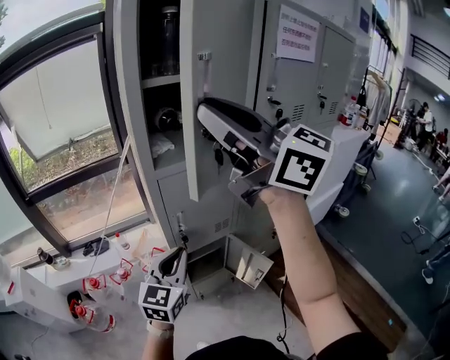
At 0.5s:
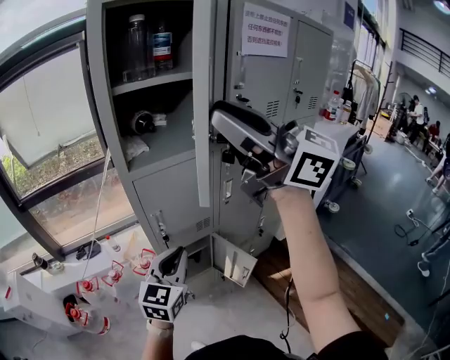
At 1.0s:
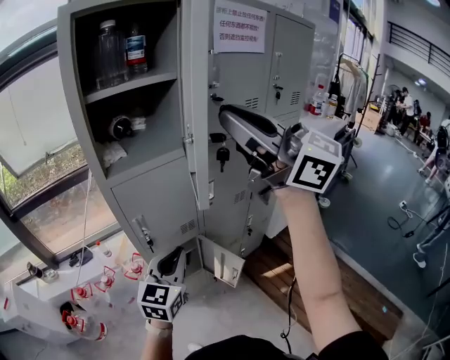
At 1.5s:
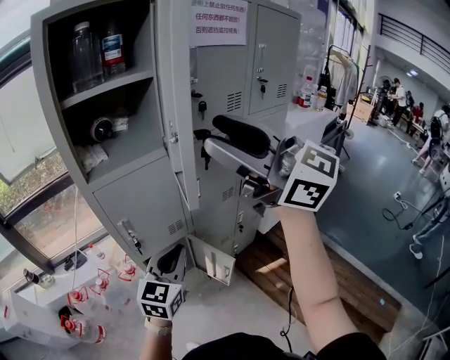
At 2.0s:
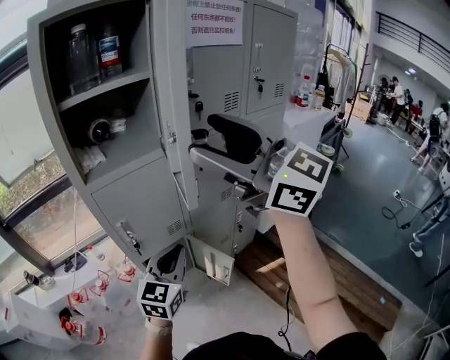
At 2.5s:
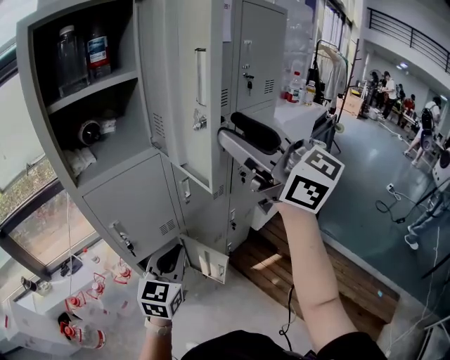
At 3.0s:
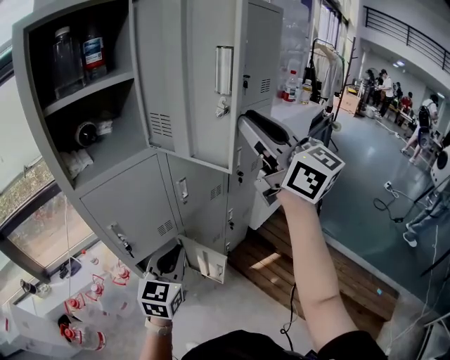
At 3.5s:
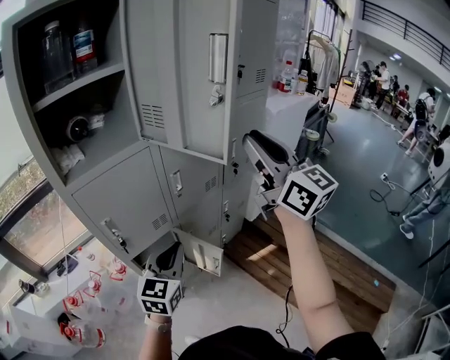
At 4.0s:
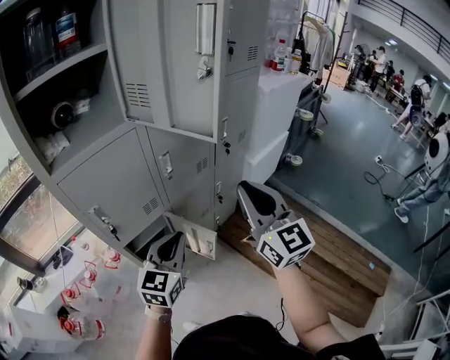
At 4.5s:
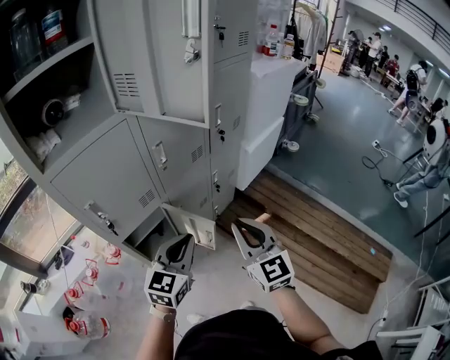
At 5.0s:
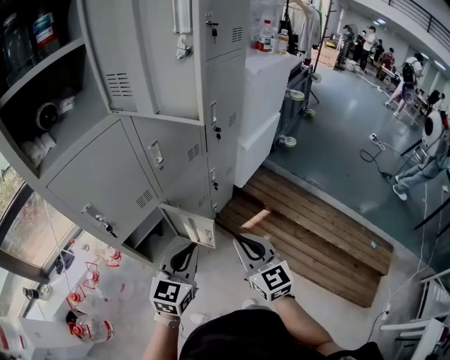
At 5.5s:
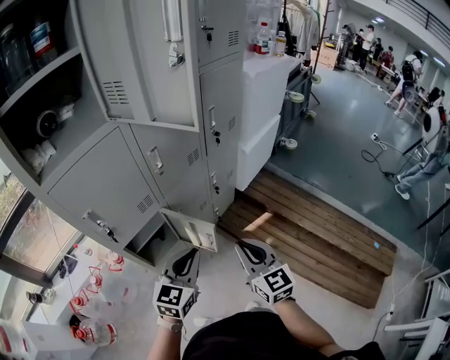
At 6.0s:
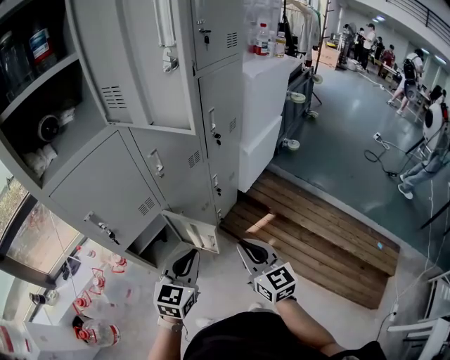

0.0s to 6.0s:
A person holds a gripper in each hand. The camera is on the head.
0.0s to 2.0s: The left gripper shifts some 15 cm to the right; the right gripper goes approximately 20 cm to the right and backward, and opens.
2.0s to 4.0s: The left gripper shifts by roughly 10 cm. The right gripper heads downward, covering approximately 25 cm, changes its angle by roughly 40 degrees, and closes its fingers.
4.0s to 6.0s: The left gripper heads downward, covering some 5 cm, while the right gripper moves downward and backward, approximately 20 cm, and turns by about 20 degrees.

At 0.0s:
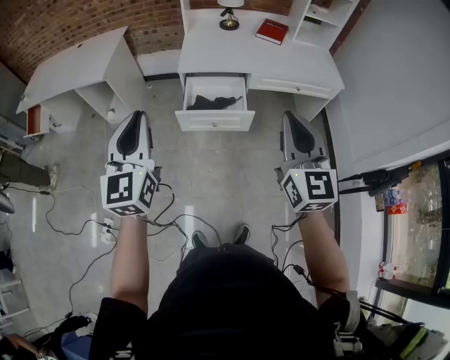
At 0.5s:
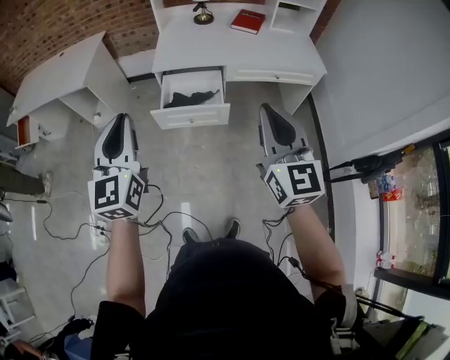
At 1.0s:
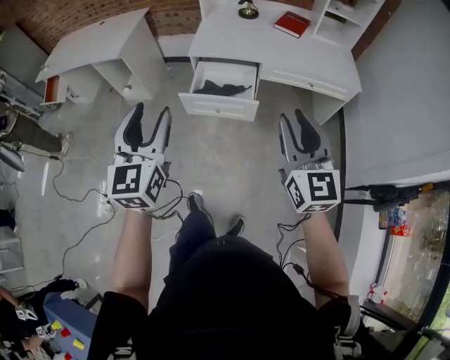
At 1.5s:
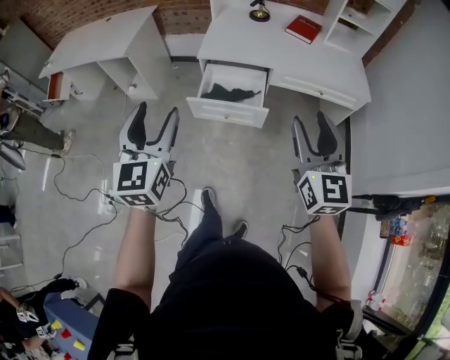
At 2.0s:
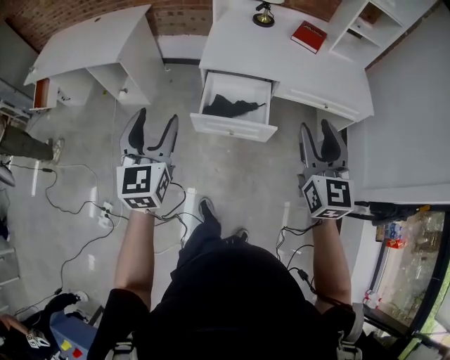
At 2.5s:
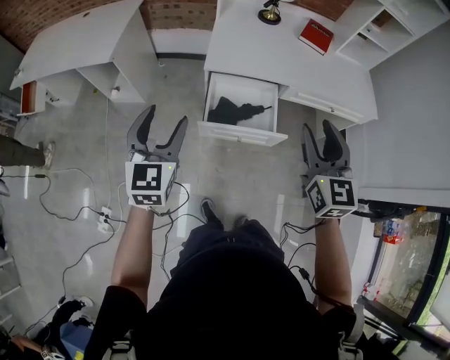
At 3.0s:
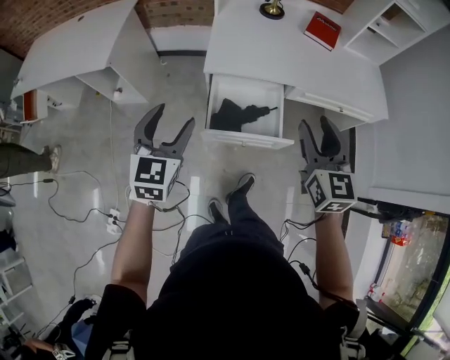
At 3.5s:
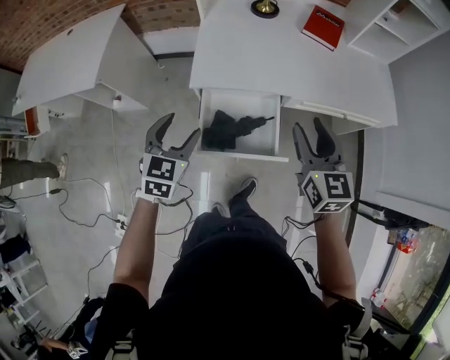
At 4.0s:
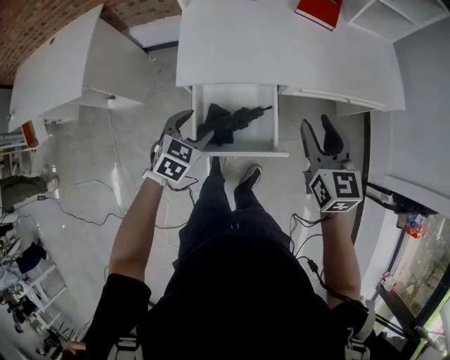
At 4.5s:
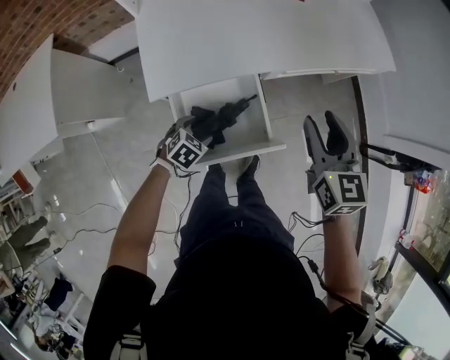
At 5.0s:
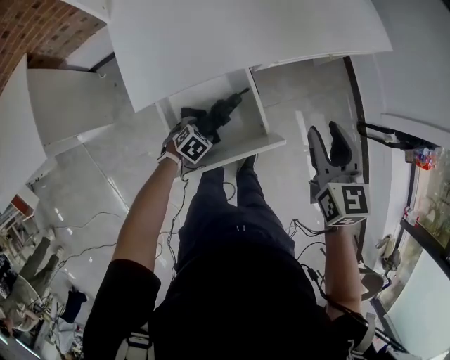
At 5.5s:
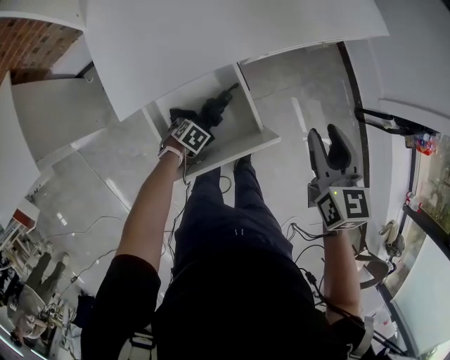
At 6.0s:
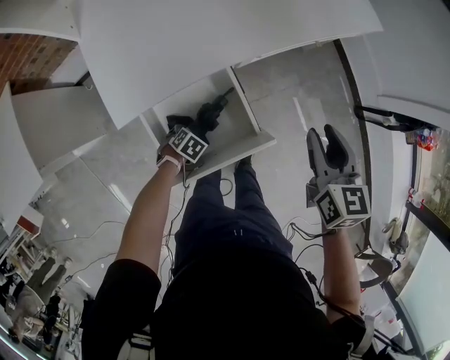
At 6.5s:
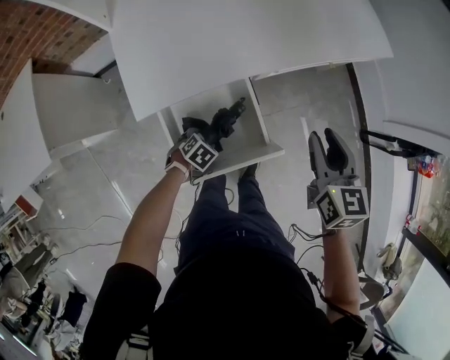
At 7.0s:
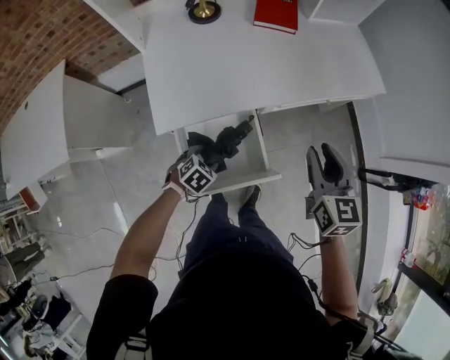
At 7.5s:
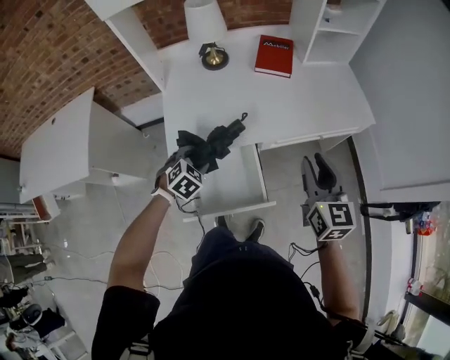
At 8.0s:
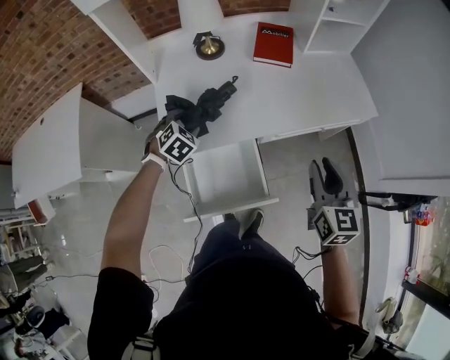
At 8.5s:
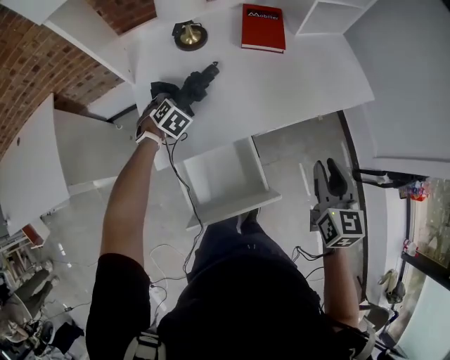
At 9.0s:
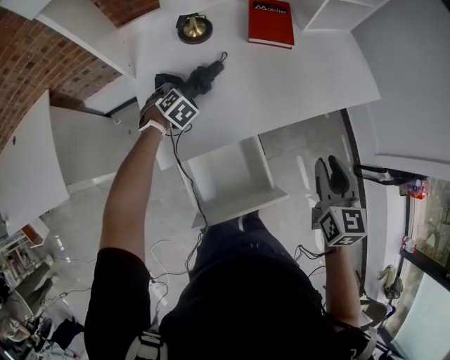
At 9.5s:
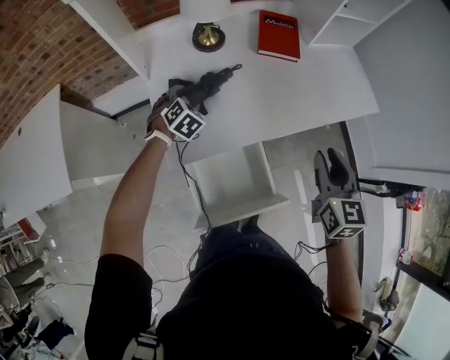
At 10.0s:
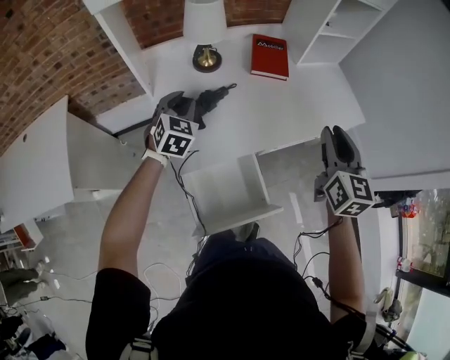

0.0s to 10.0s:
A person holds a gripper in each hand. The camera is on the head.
0.0s to 2.0s: The left gripper heads forward and downward, covering about 15 cm, and opens up; the right gripper heads forward, covering roughly 15 cm, and opens its fingers.
2.0s to 4.0s: Both grippers travel together forward and downward, roughly 35 cm. The left gripper tips its fingers downward by approximately 40 degrees. The right gripper swivels roughly 20 degrees.
4.0s to 6.0s: The left gripper heads downward, covering roughly 30 cm, and angles its fingers downward, by approximately 30 degrees. Meanwhile the right gripper shifts by roughly 10 cm, and changes its angle by approximately 30 degrees.
6.0s to 8.0s: The left gripper goes roughly 30 cm upward, and swivels about 40 degrees, while the right gripper travels upward by about 10 cm.
8.0s to 10.0s: The grippers both shift forward and upward by about 15 cm. The left gripper changes its angle by about 30 degrees, and closes up.

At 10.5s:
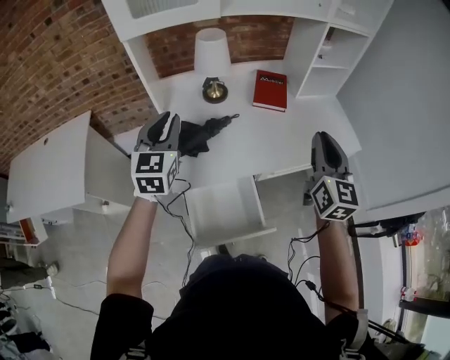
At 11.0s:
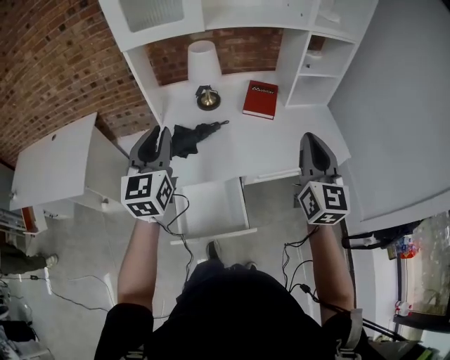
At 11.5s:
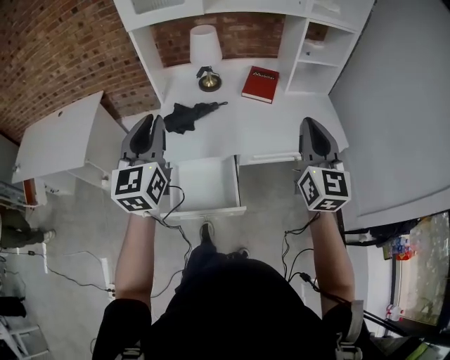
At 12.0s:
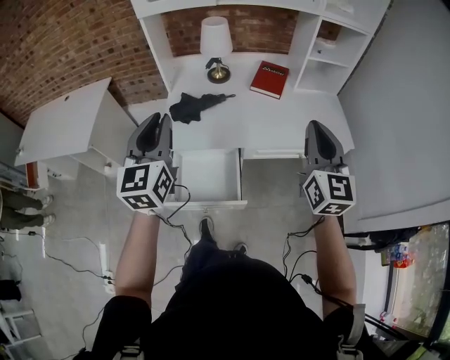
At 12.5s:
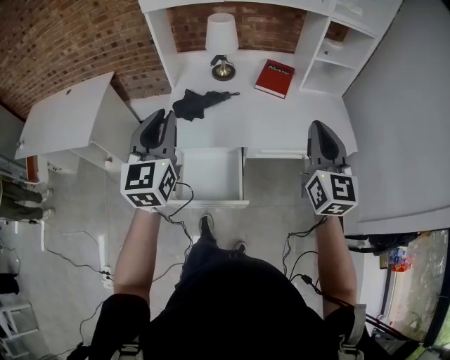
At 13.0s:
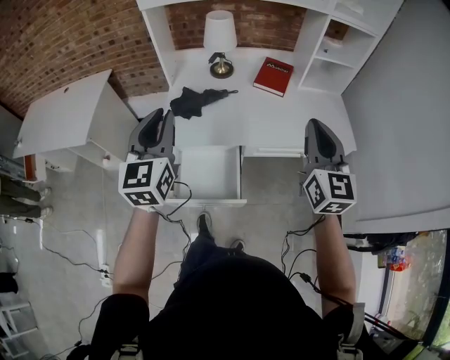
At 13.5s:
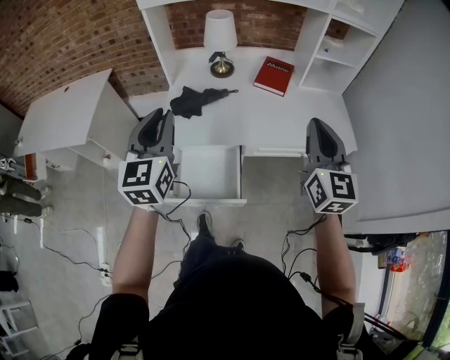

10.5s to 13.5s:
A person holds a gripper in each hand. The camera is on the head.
10.5s to 12.0s: The left gripper is displaced backward and to the right by roughly 25 cm. Meanwhile the right gripper moves backward and to the right, roughly 10 cm.
12.0s to 13.5s: The grippers stay close to where they were, moving slightly.

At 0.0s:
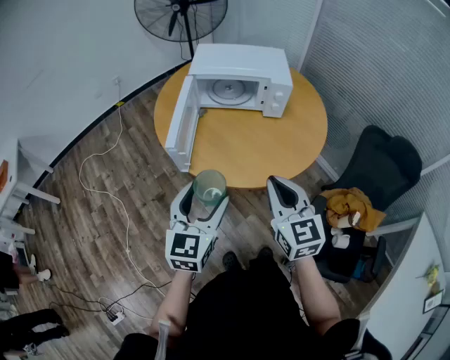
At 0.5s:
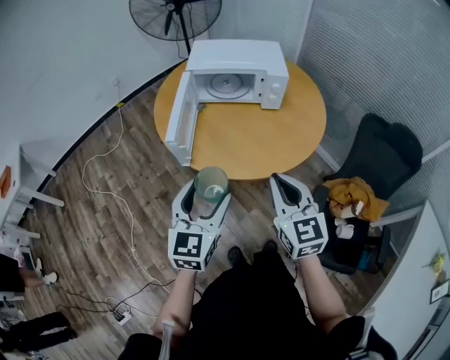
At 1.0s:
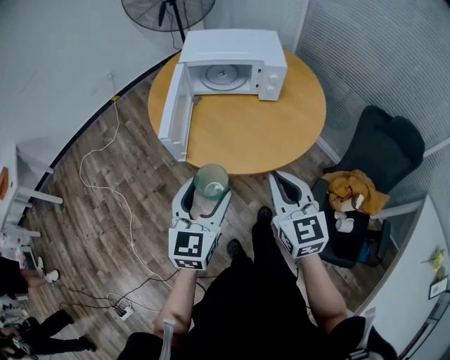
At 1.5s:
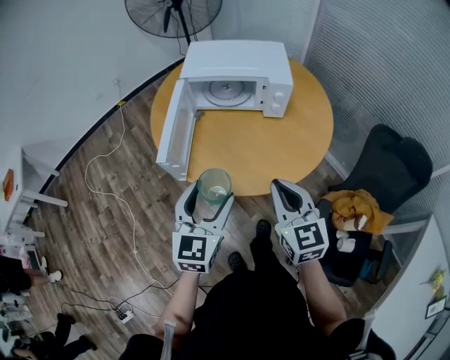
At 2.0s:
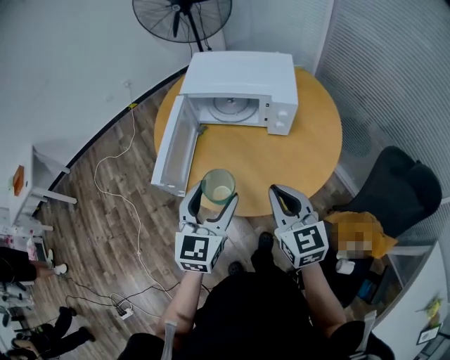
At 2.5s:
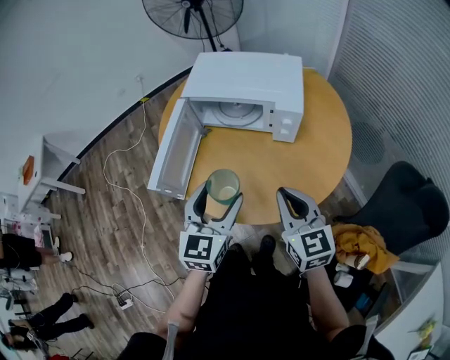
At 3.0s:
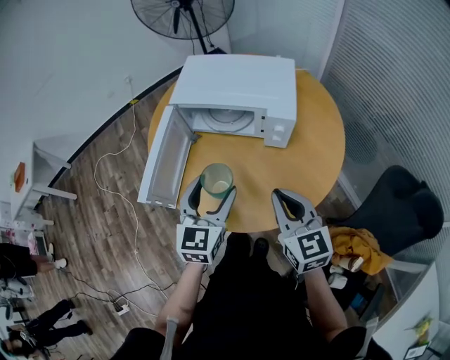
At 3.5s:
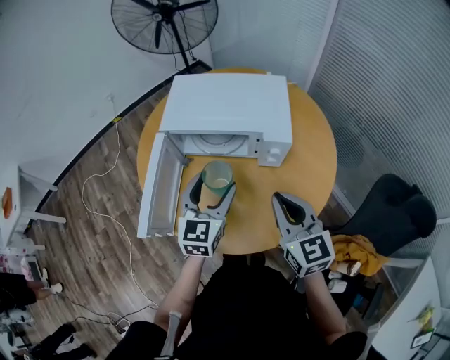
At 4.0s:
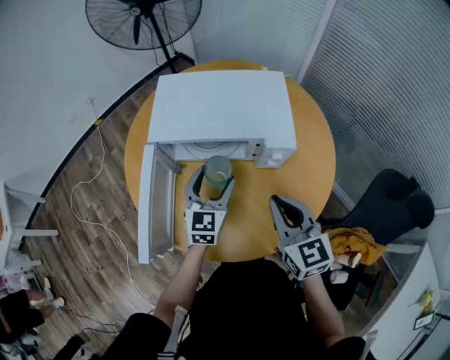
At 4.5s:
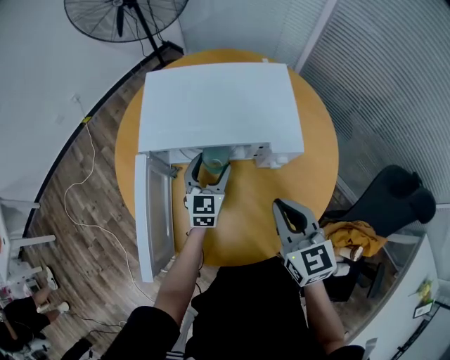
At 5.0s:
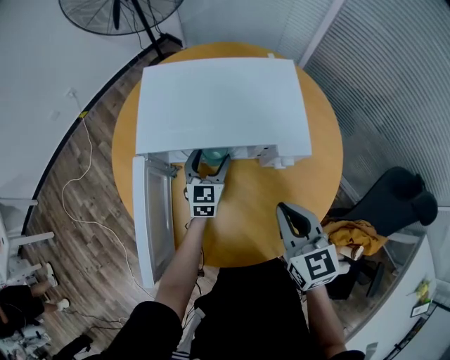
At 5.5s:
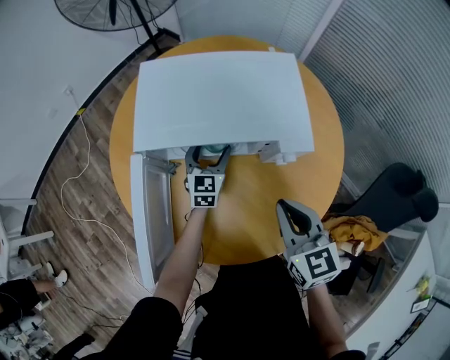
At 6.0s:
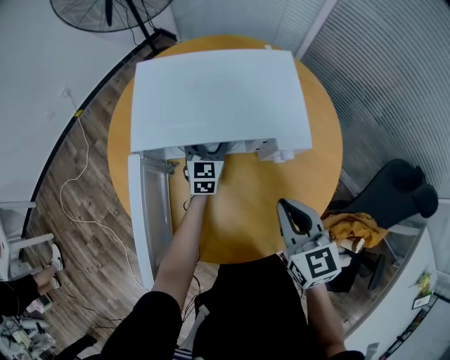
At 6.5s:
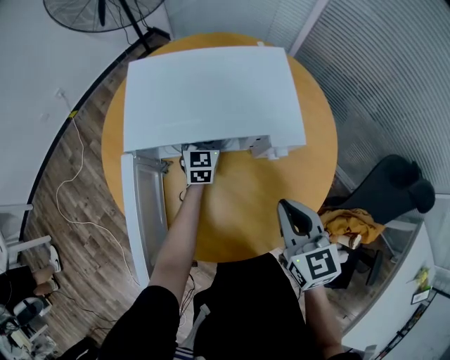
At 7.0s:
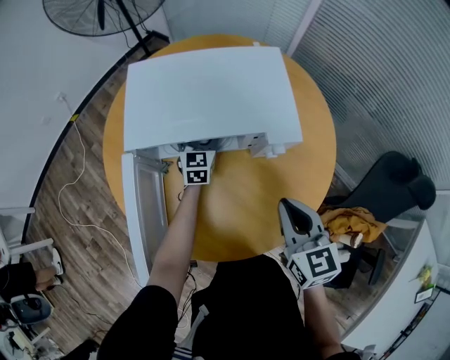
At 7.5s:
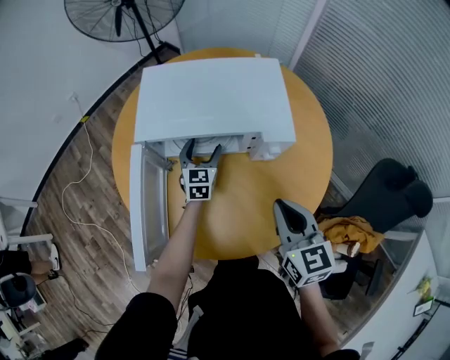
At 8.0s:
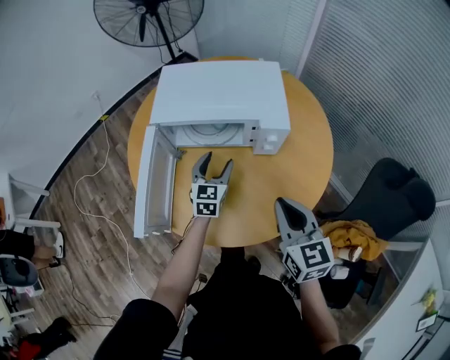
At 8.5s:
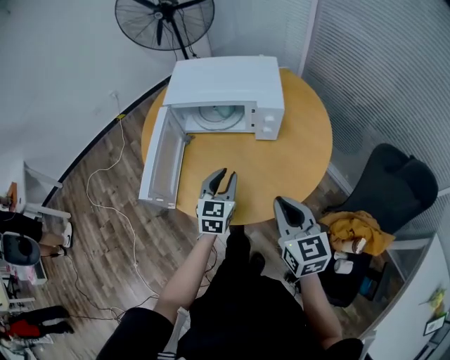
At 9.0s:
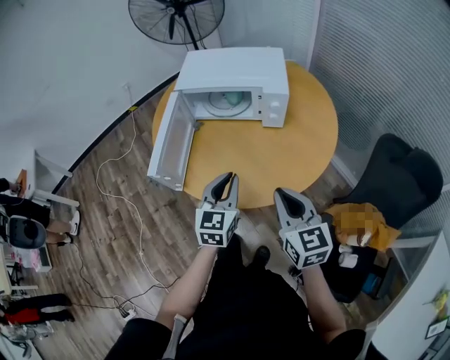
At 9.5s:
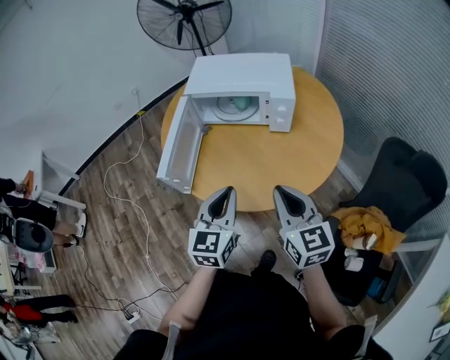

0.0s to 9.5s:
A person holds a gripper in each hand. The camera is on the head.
0.0s to 2.0s: The two grippers go about 15 cm forward and to the right.
2.0s to 4.0s: The left gripper shifts some 25 cm forward. The right gripper is displaced forward by approximately 15 cm.
4.0s to 5.5s: The right gripper moves approximately 5 cm. The left gripper shifts approximately 20 cm forward and downward.
5.5s to 7.5s: The right gripper shifts by approximately 5 cm.
7.5s to 9.5s: The left gripper heads backward and upward, covering some 50 cm, and closes. Meanwhile the right gripper travels backward by approximately 20 cm.
